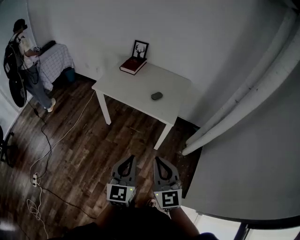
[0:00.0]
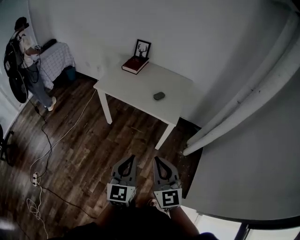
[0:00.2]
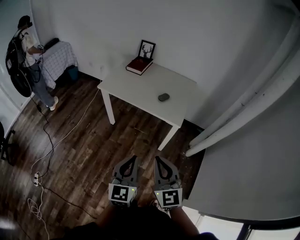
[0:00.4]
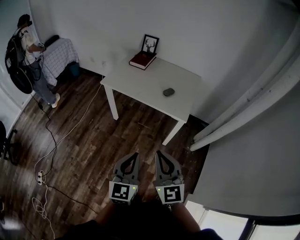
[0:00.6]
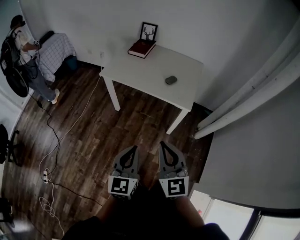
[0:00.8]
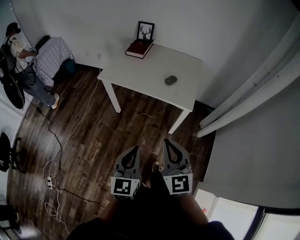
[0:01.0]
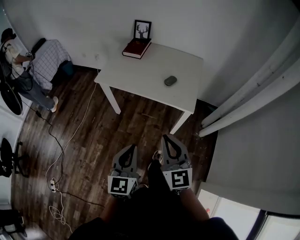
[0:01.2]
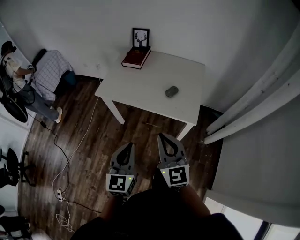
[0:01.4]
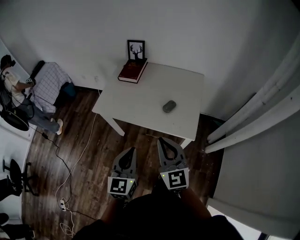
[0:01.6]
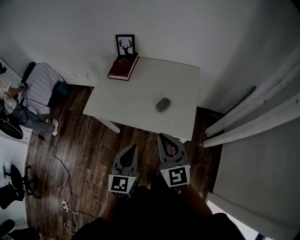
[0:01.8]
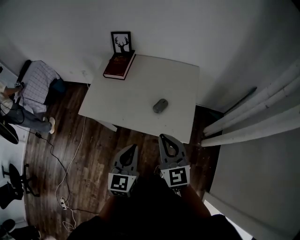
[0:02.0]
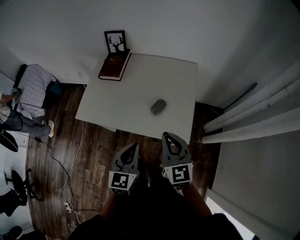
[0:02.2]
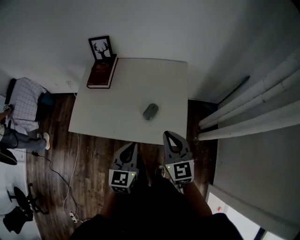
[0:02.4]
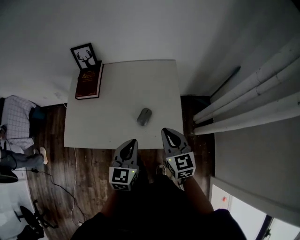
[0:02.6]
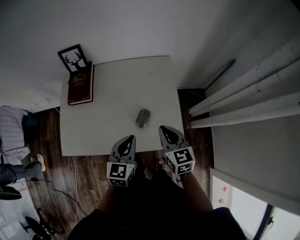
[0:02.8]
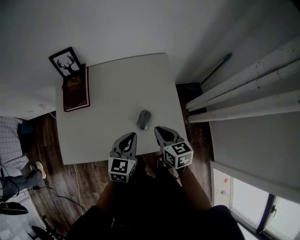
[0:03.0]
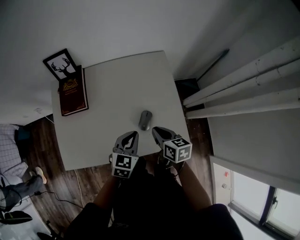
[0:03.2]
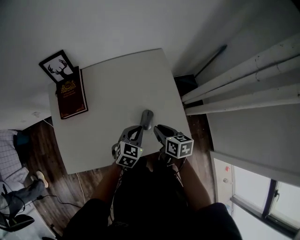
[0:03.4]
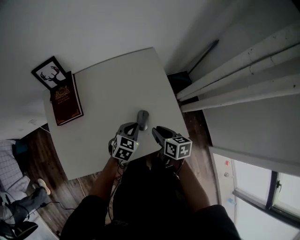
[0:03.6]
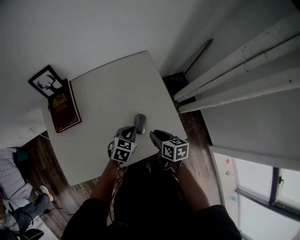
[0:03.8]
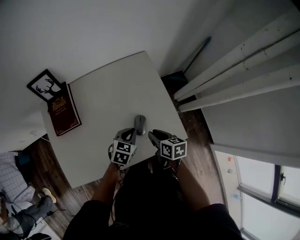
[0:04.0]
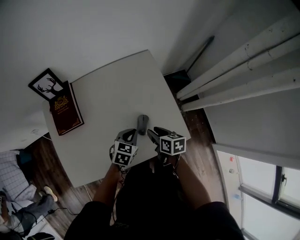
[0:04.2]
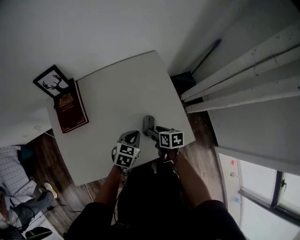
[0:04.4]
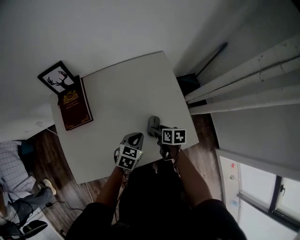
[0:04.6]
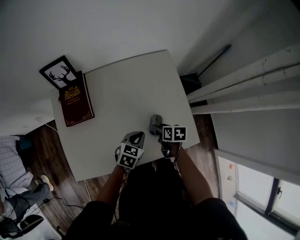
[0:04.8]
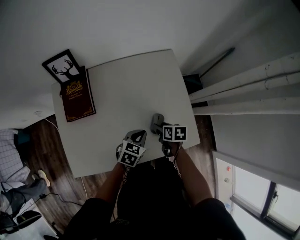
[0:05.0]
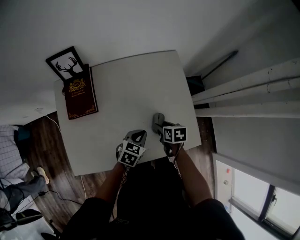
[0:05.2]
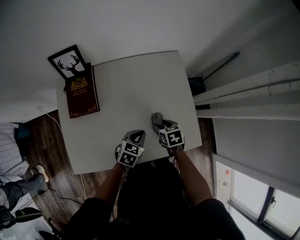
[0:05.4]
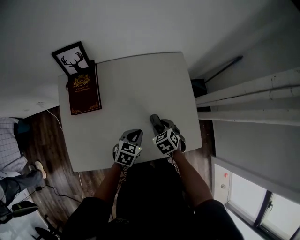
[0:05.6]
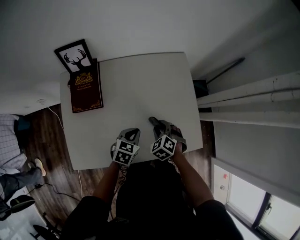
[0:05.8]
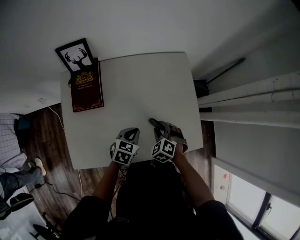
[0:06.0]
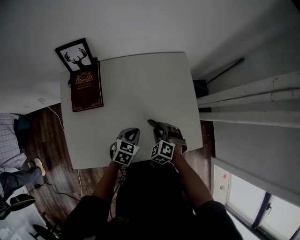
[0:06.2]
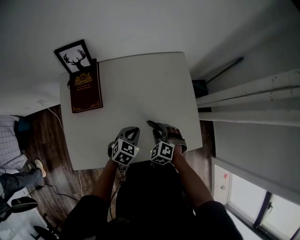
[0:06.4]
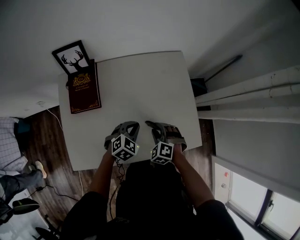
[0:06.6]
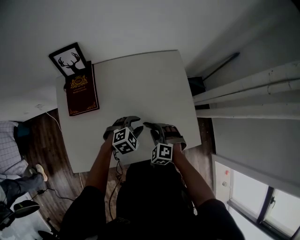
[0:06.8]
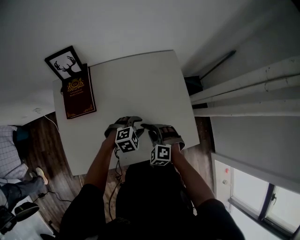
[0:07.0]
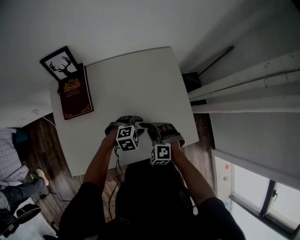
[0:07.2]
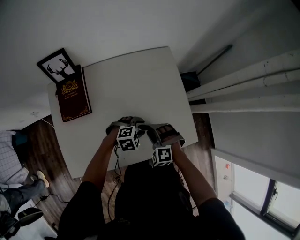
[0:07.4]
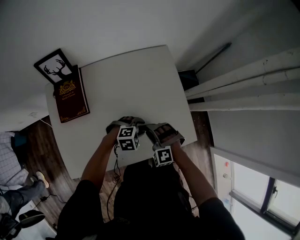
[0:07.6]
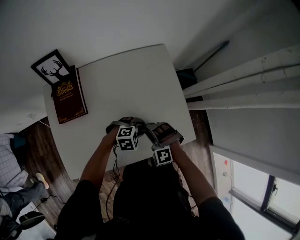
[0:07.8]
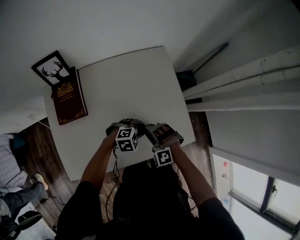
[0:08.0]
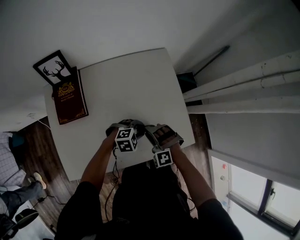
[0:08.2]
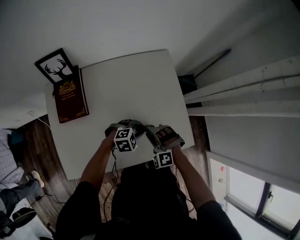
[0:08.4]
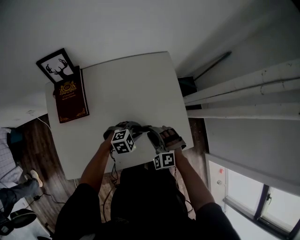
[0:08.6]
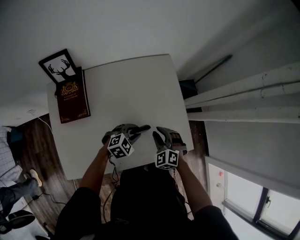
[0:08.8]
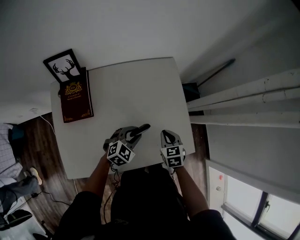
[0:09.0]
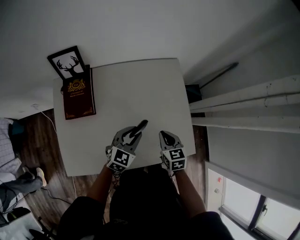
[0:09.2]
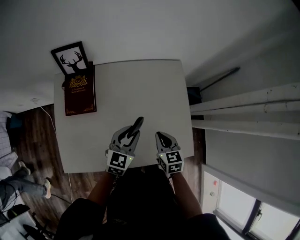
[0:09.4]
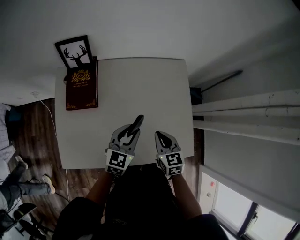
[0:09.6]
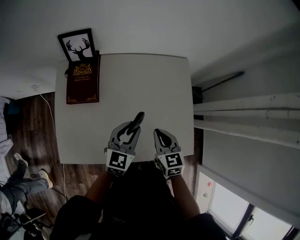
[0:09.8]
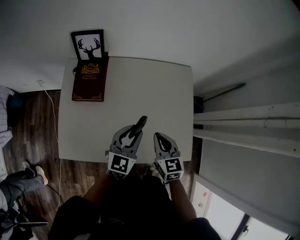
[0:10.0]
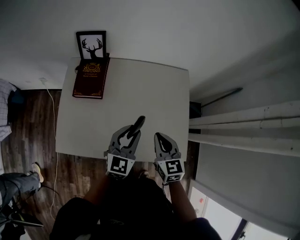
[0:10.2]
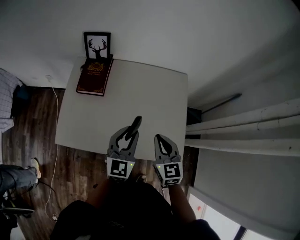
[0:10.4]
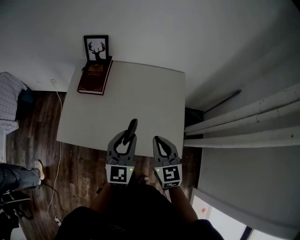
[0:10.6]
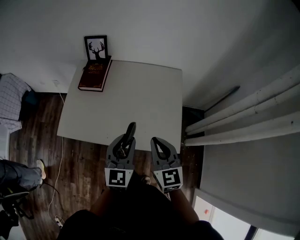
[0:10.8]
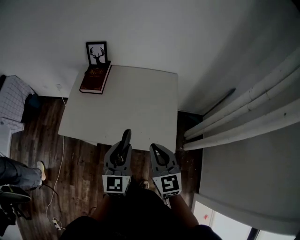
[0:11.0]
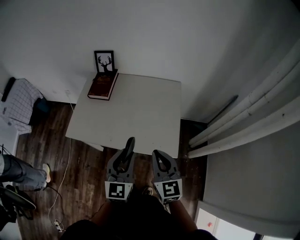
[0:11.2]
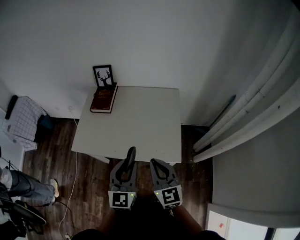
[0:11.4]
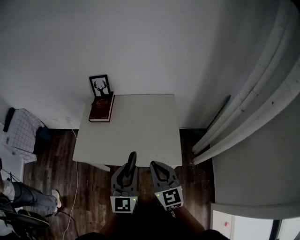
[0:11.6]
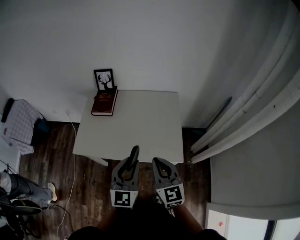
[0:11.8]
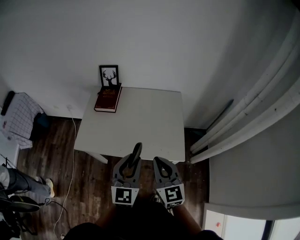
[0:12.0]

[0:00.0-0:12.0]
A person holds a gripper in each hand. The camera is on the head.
0:00.0 to 0:01.6: Both grippers move forward, roughly 30 cm.
0:01.6 to 0:03.0: The left gripper shifts by roughly 35 cm, and turns by some 40 degrees, while the right gripper ends up approximately 35 cm from where it was, and angles its fingers downward, by about 30 degrees.
0:03.0 to 0:04.4: Both grippers travel together downward, approximately 15 cm. The left gripper rotates about 30 degrees; the right gripper swivels roughly 30 degrees, and opens.
0:04.4 to 0:06.0: Both grippers travel together to the left, approximately 5 cm. The right gripper rolls counterclockwise, seen from behind, by about 80 degrees.
0:06.0 to 0:07.6: The left gripper moves to the right, about 10 cm, rolls clockwise, seen from behind, by about 60 degrees, and opens its fingers, while the right gripper swivels approximately 30 degrees.
0:07.6 to 0:09.0: The left gripper heads upward, covering about 5 cm, and swivels approximately 40 degrees. Meanwhile the right gripper goes roughly 10 cm forward and to the right, rolls clockwise, seen from behind, by about 70 degrees, and closes its fingers.
0:09.0 to 0:10.4: Both grippers move upward, roughly 15 cm. The left gripper turns by approximately 50 degrees, while the right gripper rotates roughly 30 degrees.
0:10.4 to 0:12.0: The grippers both shift backward and upward by roughly 25 cm.

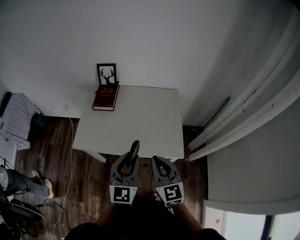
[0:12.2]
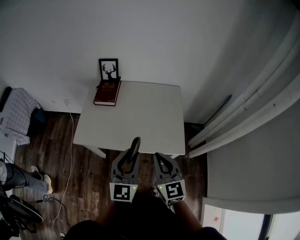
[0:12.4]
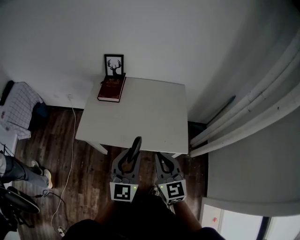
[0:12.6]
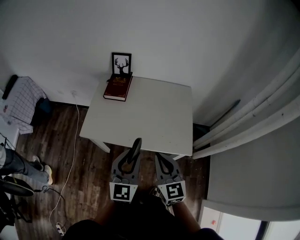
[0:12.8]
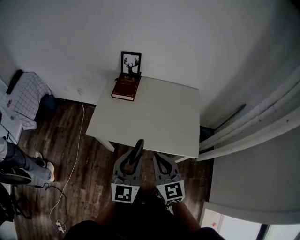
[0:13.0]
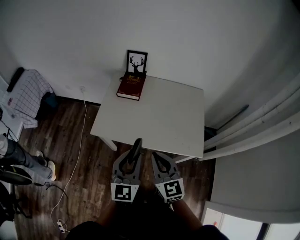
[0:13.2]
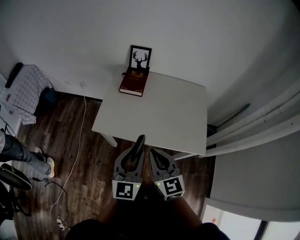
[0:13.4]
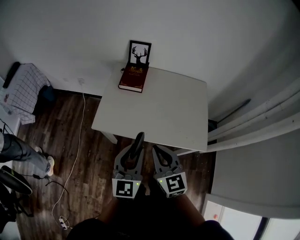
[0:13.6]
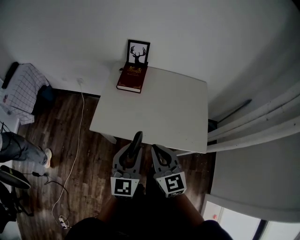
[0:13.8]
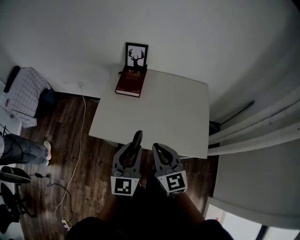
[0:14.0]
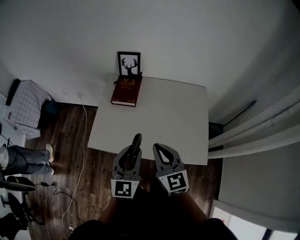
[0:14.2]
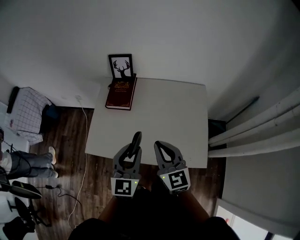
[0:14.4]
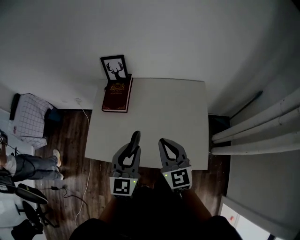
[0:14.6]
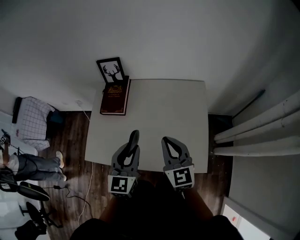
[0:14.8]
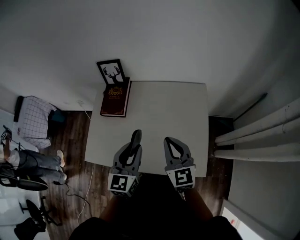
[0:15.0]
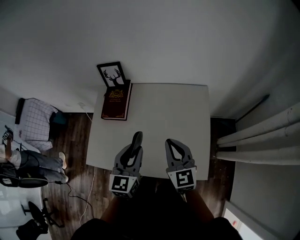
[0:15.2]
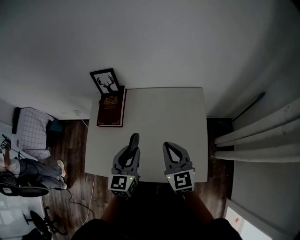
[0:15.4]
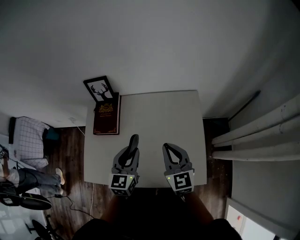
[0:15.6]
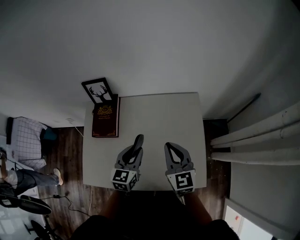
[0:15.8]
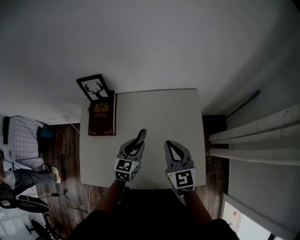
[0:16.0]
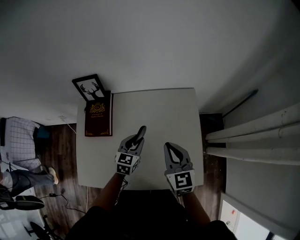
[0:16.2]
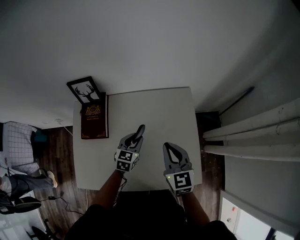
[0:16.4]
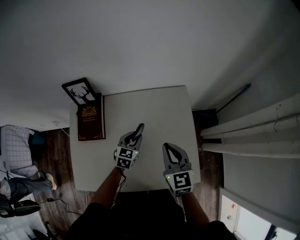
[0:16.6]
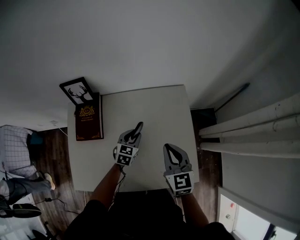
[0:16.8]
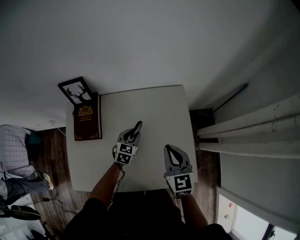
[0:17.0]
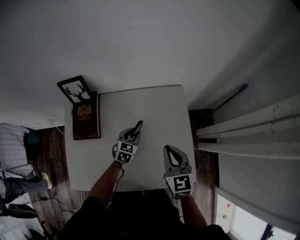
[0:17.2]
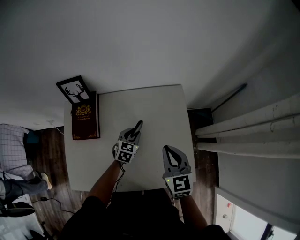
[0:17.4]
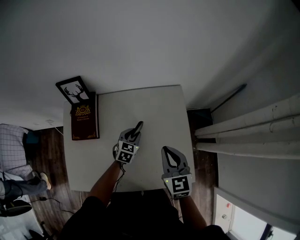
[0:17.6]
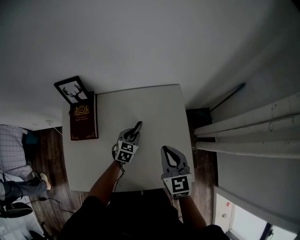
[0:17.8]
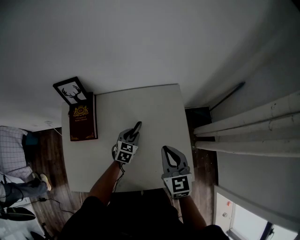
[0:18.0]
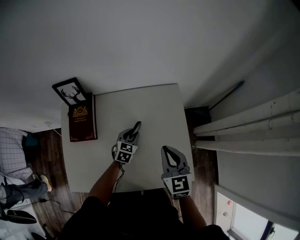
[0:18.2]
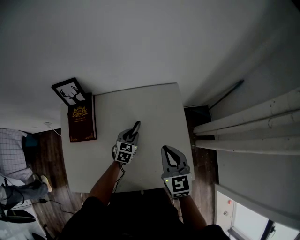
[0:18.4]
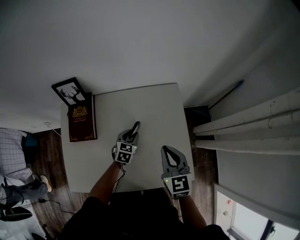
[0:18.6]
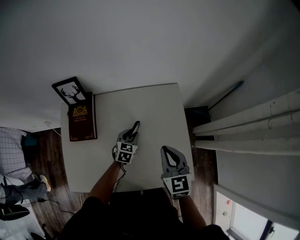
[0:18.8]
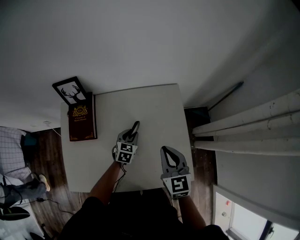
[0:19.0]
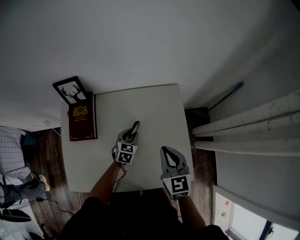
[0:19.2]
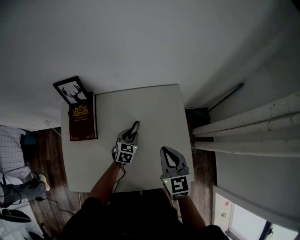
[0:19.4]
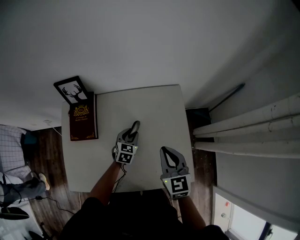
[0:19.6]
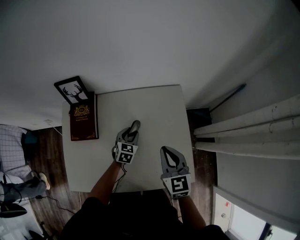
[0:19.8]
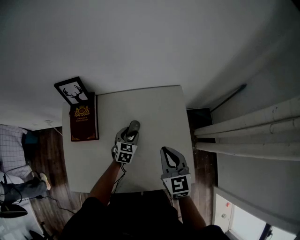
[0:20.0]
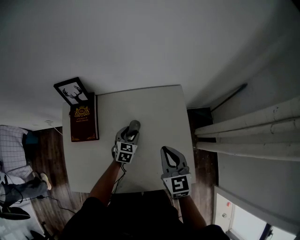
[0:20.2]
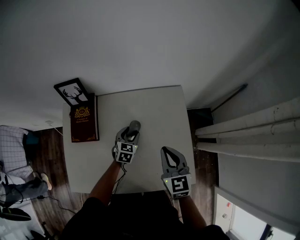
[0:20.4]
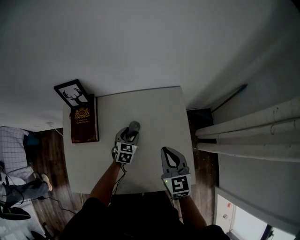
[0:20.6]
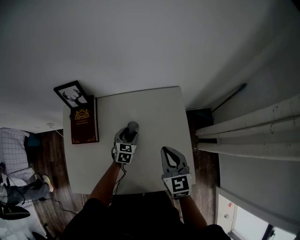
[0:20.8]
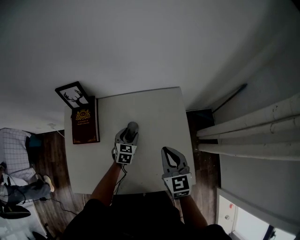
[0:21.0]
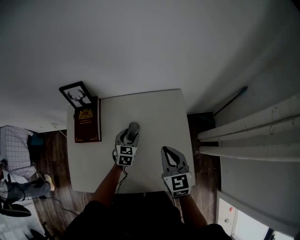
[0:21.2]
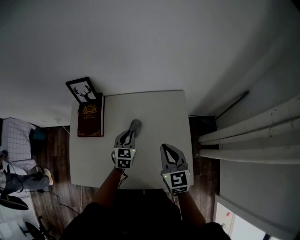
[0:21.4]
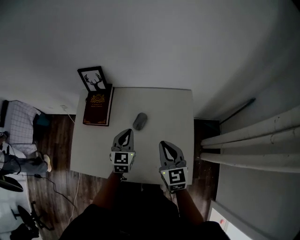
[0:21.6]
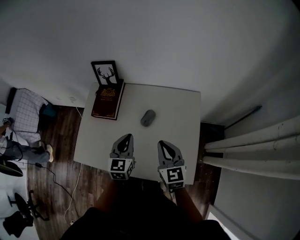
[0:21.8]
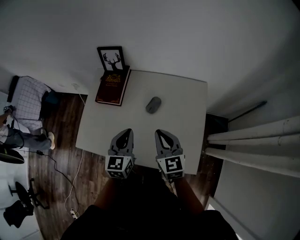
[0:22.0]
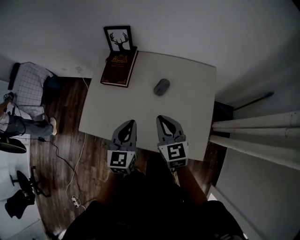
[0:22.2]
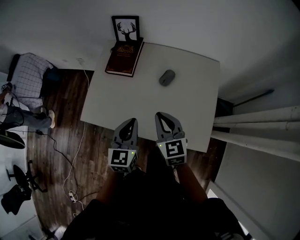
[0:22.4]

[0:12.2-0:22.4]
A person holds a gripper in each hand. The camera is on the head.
0:12.2 to 0:13.6: The two grippers go roughly 15 cm to the left.
0:13.6 to 0:15.2: The grippers both shift forward and to the right by some 30 cm.
0:15.2 to 0:16.6: The left gripper travels downward and forward by about 25 cm, and rotates approximately 30 degrees, while the right gripper moves forward and downward, some 10 cm.
0:16.6 to 0:18.0: The grippers make only small movements.
0:18.0 to 0:19.4: Both grippers stay about where they are.
0:19.4 to 0:21.0: The left gripper opens.
0:21.0 to 0:22.4: The right gripper travels to the left and backward by about 20 cm, and swivels some 20 degrees; the left gripper is displaced backward, upward and to the left by roughly 35 cm, swivels roughly 30 degrees, and closes up.

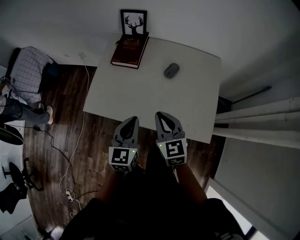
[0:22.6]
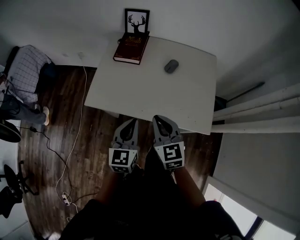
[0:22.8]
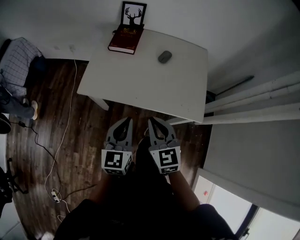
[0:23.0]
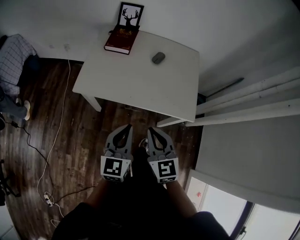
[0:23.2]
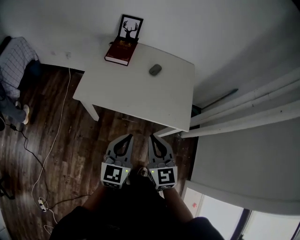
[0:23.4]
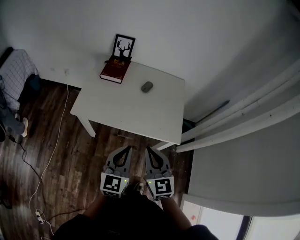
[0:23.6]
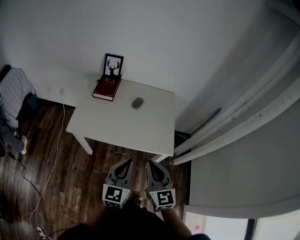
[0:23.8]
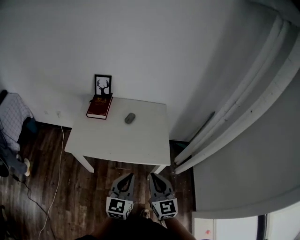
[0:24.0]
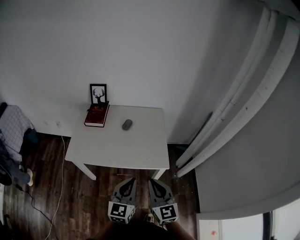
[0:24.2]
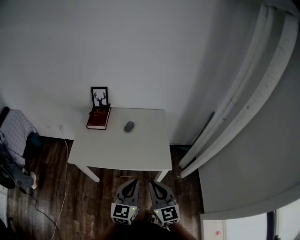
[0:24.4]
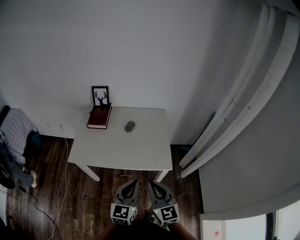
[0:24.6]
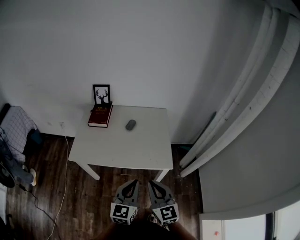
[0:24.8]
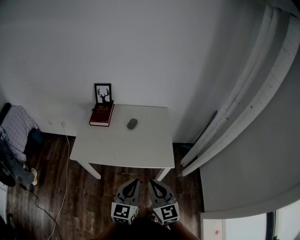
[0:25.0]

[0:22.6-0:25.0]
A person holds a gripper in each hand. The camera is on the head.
0:22.6 to 0:23.8: The right gripper is displaced backward and upward by approximately 25 cm, and changes its angle by some 20 degrees; the left gripper shifts about 20 cm backward.
0:23.8 to 0:25.0: The left gripper shifts approximately 5 cm to the right.
